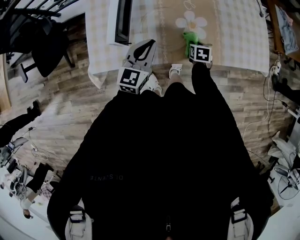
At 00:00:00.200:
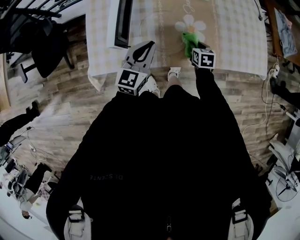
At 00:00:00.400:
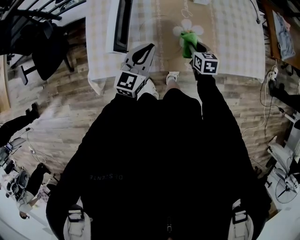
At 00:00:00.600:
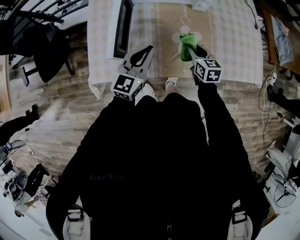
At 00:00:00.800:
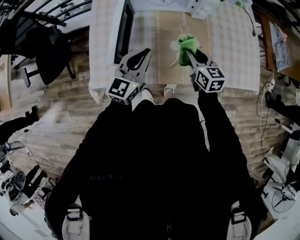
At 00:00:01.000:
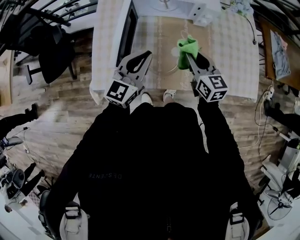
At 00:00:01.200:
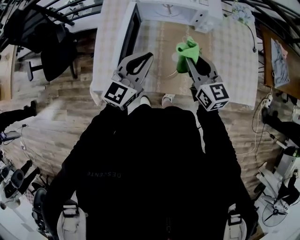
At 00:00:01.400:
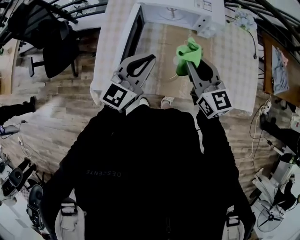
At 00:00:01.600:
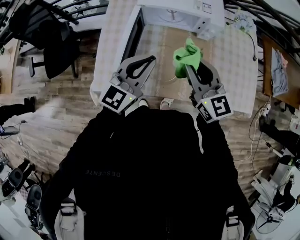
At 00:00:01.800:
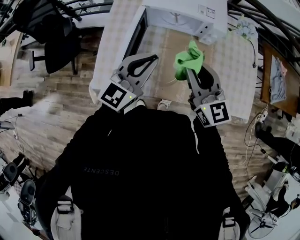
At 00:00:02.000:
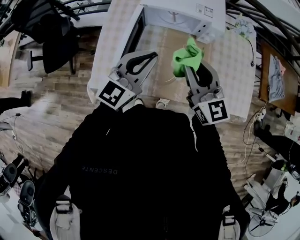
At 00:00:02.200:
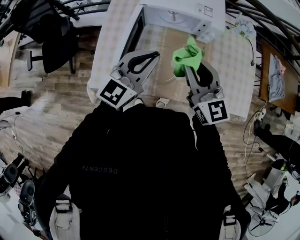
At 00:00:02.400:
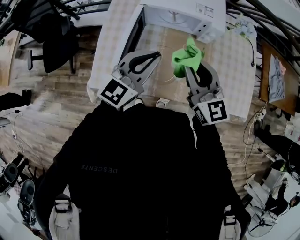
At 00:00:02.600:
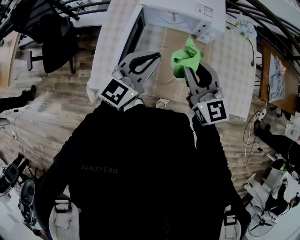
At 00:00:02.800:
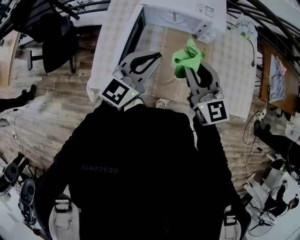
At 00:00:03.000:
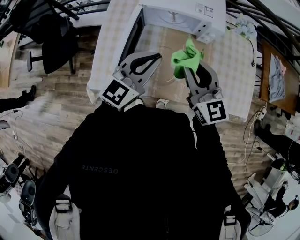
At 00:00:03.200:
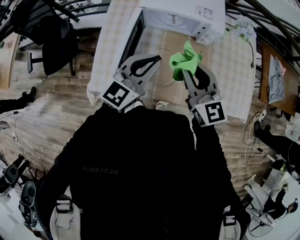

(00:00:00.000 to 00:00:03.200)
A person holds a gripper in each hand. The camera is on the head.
00:00:00.000 - 00:00:01.600: The right gripper shifts approximately 40 cm upward, and tilts its fingers approximately 50 degrees upward; the left gripper travels upward by approximately 20 cm.
00:00:01.600 - 00:00:03.200: The grippers make only small movements.

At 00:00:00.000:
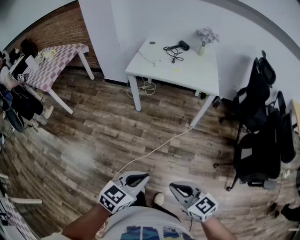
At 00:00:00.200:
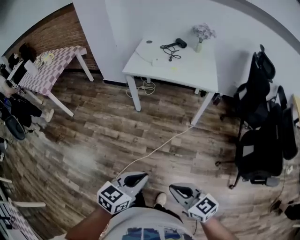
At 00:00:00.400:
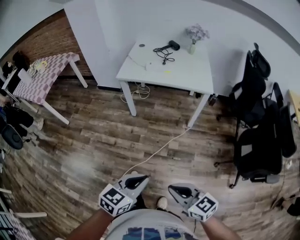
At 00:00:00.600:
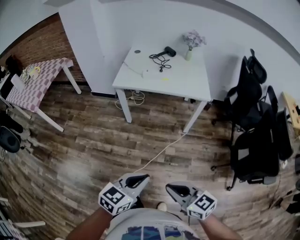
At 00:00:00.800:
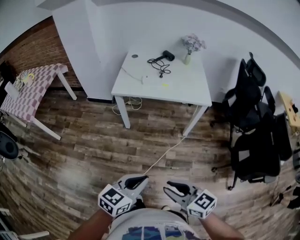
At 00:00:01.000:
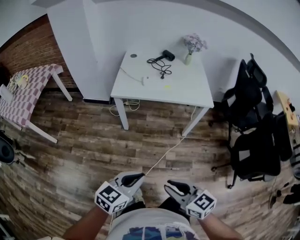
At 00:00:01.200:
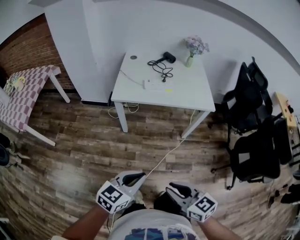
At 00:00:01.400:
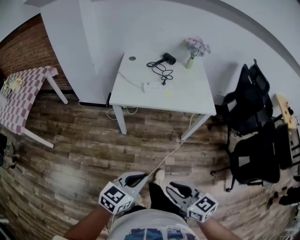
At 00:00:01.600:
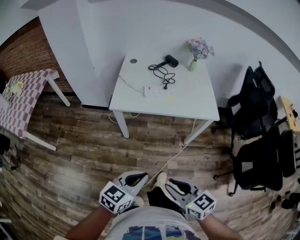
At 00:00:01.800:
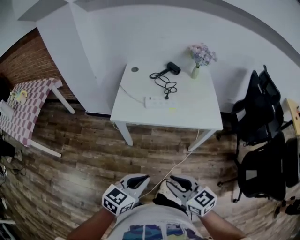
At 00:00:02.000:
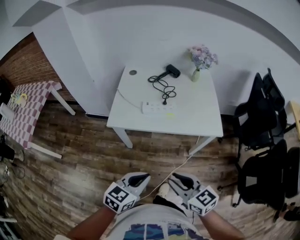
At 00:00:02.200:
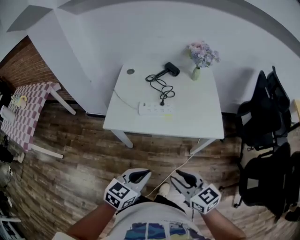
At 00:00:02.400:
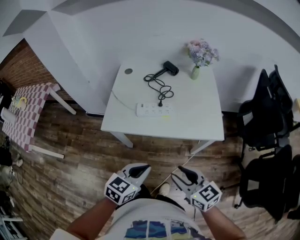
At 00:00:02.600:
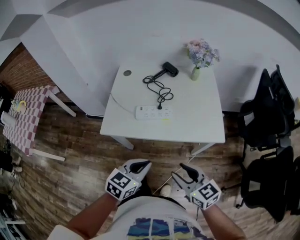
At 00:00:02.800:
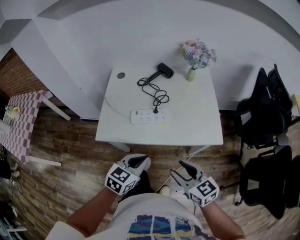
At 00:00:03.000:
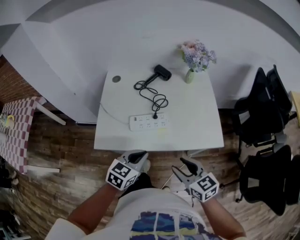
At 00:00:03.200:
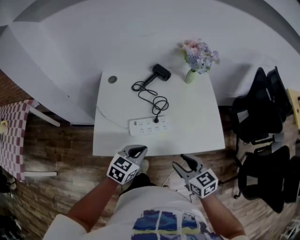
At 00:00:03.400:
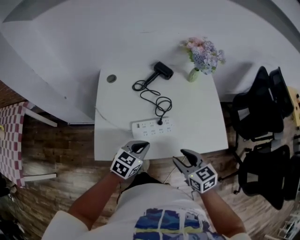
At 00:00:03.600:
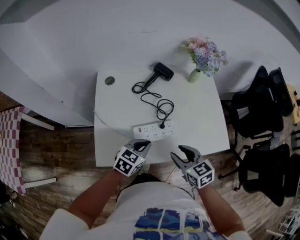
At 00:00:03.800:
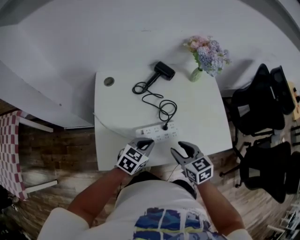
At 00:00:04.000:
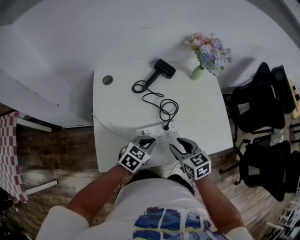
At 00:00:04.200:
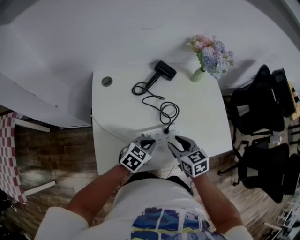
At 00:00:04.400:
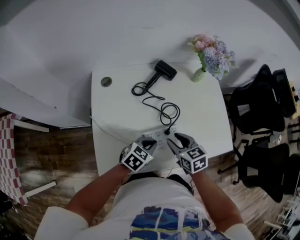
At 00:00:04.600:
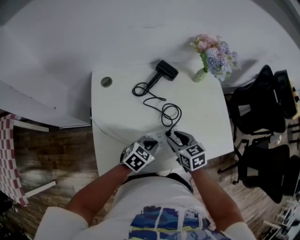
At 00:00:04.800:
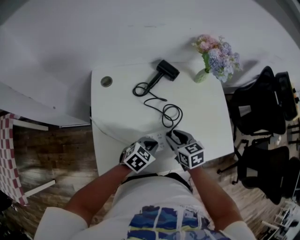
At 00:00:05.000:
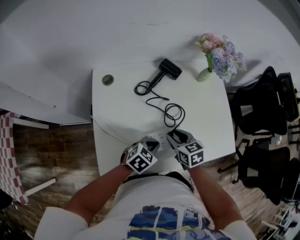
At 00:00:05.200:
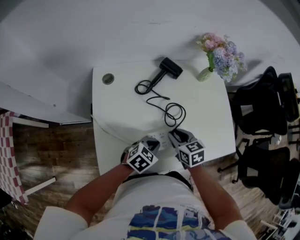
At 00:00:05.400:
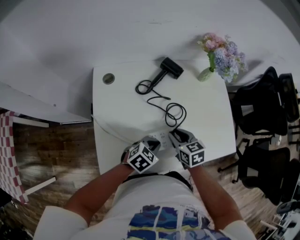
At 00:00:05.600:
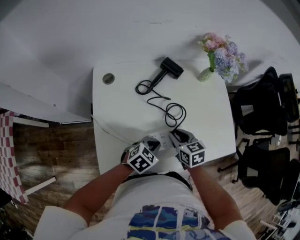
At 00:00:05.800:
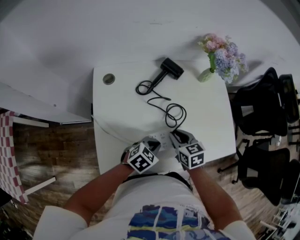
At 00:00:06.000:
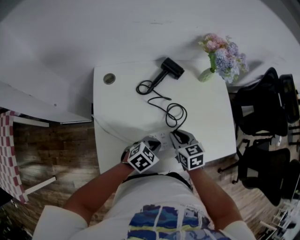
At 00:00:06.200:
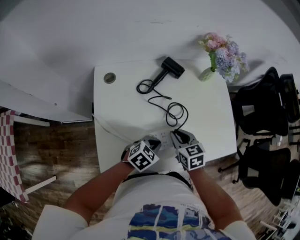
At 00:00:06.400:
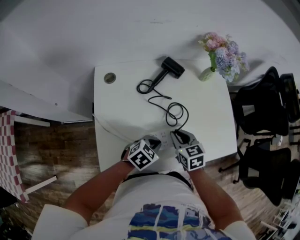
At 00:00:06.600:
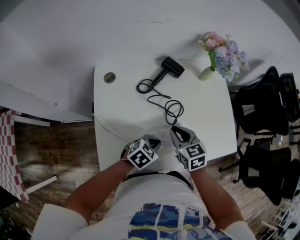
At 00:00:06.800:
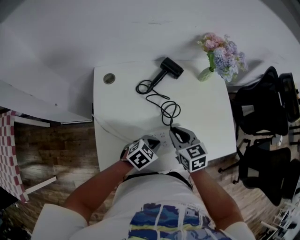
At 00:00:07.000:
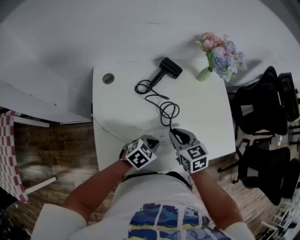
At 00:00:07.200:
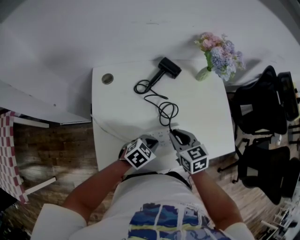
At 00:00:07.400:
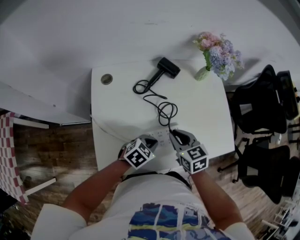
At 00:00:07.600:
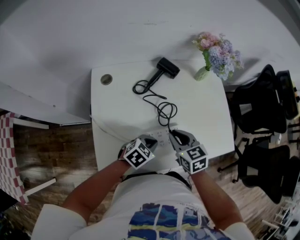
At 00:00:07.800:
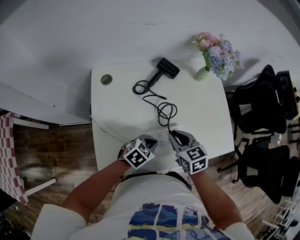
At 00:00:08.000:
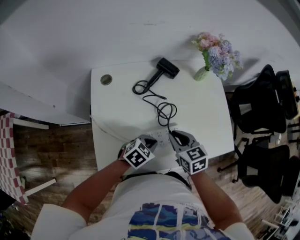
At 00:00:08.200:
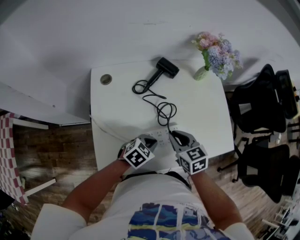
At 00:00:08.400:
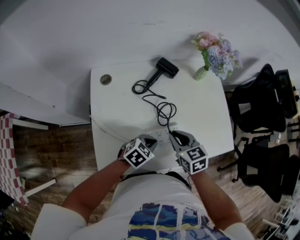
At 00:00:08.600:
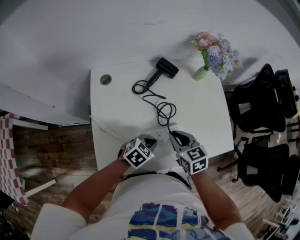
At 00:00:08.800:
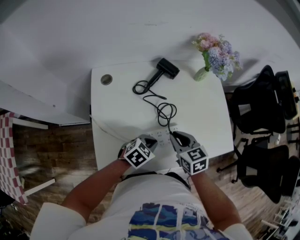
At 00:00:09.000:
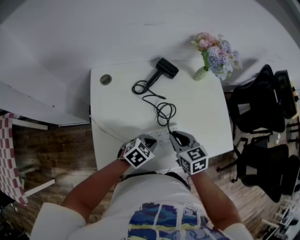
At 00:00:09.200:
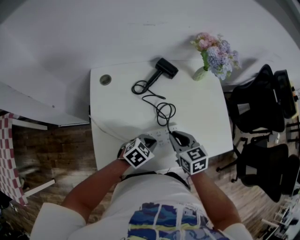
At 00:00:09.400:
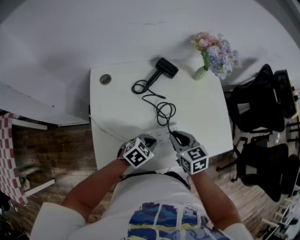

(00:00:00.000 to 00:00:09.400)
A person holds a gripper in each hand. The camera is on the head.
00:00:00.000 - 00:00:01.600: The grippers both shift forward by roughly 35 cm.
00:00:01.600 - 00:00:03.200: The pair of grippers is taken forward, approximately 40 cm. The right gripper opens its fingers.
00:00:03.200 - 00:00:04.800: The left gripper shifts some 15 cm forward and downward, and swivels some 20 degrees. Meanwhile the right gripper shifts some 25 cm forward, to the left and downward.
00:00:04.800 - 00:00:06.200: The right gripper closes up.
00:00:06.200 - 00:00:07.800: There are only small adjustments of the grippers.
00:00:07.800 - 00:00:09.400: Both grippers stay about where they are.

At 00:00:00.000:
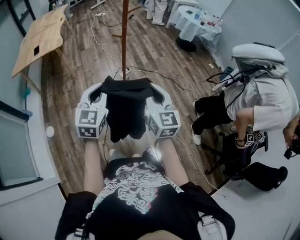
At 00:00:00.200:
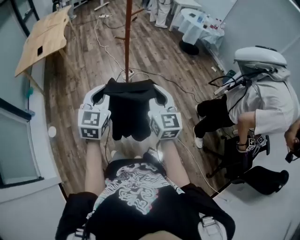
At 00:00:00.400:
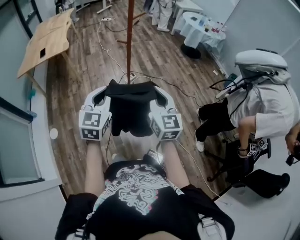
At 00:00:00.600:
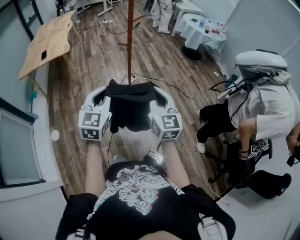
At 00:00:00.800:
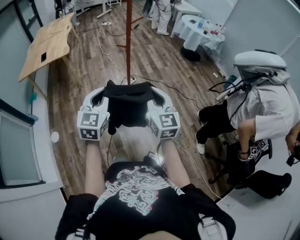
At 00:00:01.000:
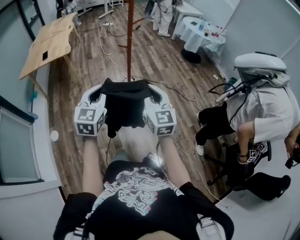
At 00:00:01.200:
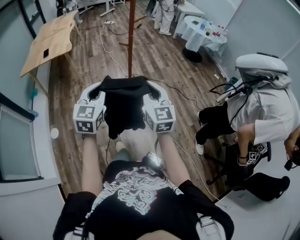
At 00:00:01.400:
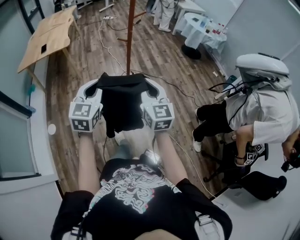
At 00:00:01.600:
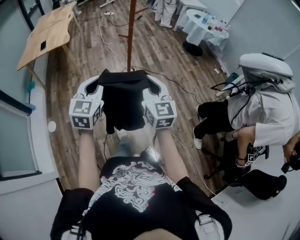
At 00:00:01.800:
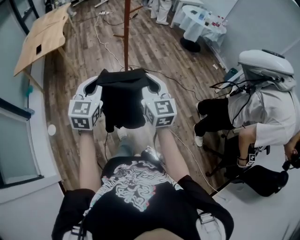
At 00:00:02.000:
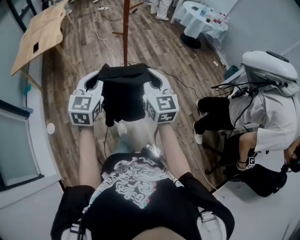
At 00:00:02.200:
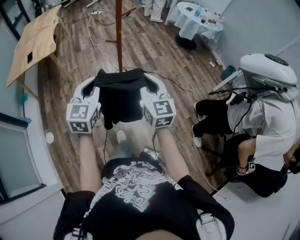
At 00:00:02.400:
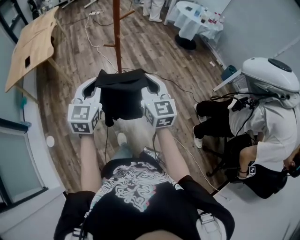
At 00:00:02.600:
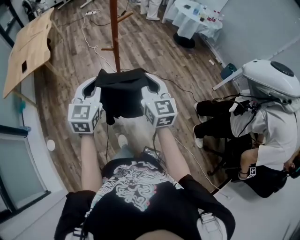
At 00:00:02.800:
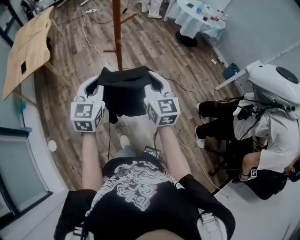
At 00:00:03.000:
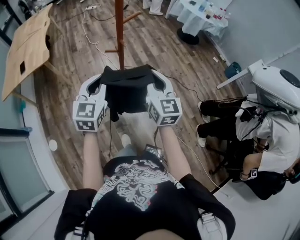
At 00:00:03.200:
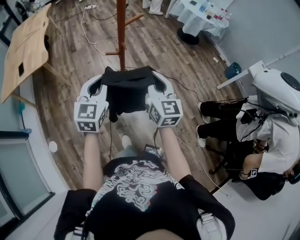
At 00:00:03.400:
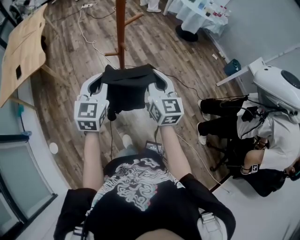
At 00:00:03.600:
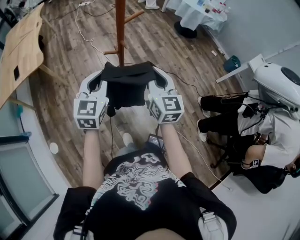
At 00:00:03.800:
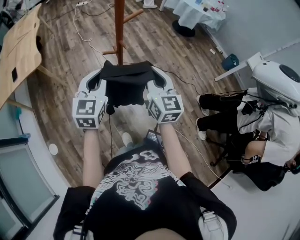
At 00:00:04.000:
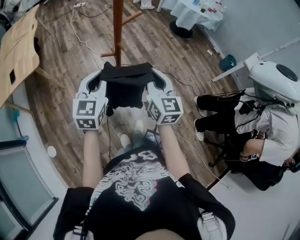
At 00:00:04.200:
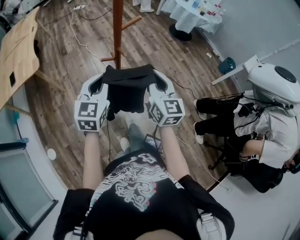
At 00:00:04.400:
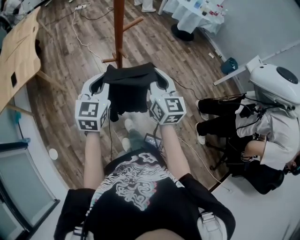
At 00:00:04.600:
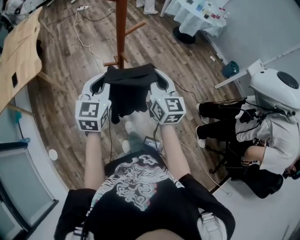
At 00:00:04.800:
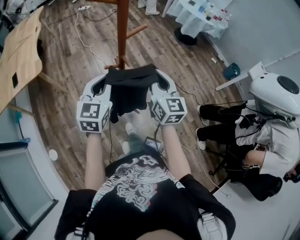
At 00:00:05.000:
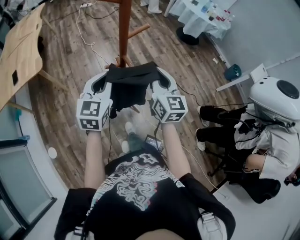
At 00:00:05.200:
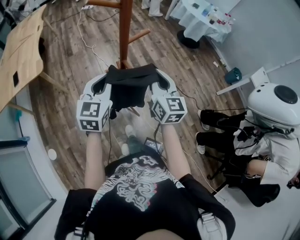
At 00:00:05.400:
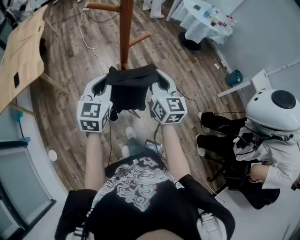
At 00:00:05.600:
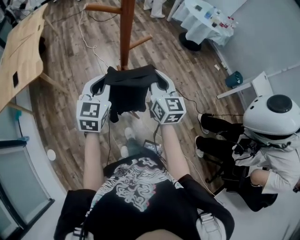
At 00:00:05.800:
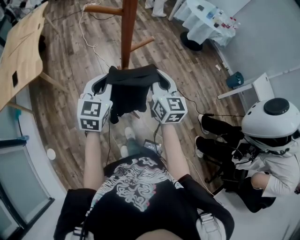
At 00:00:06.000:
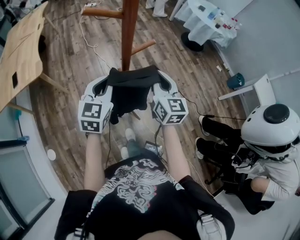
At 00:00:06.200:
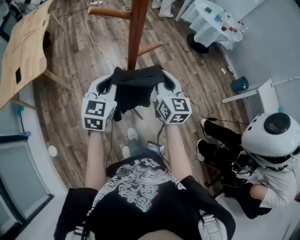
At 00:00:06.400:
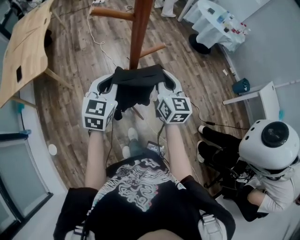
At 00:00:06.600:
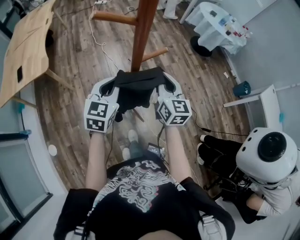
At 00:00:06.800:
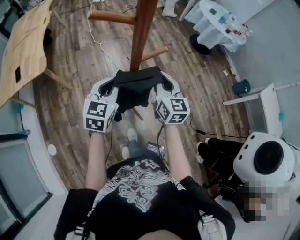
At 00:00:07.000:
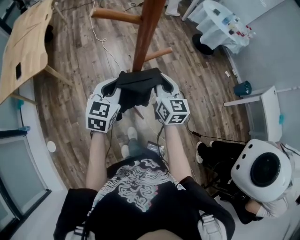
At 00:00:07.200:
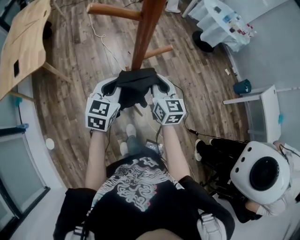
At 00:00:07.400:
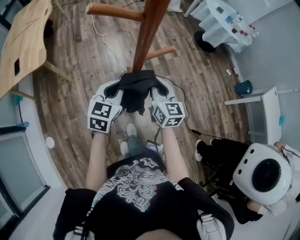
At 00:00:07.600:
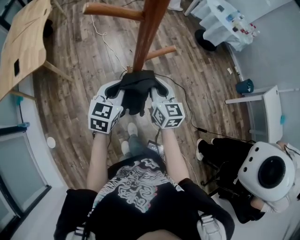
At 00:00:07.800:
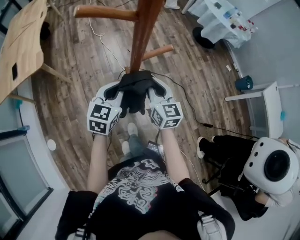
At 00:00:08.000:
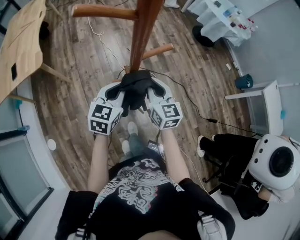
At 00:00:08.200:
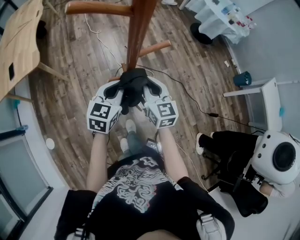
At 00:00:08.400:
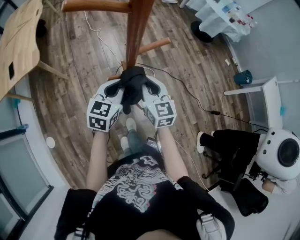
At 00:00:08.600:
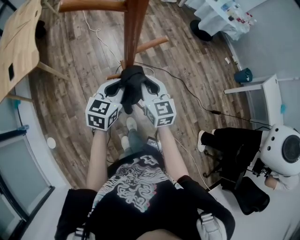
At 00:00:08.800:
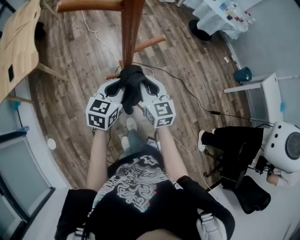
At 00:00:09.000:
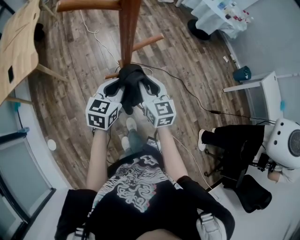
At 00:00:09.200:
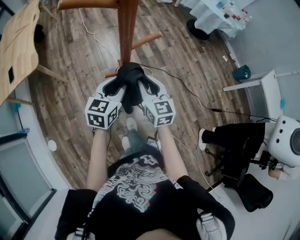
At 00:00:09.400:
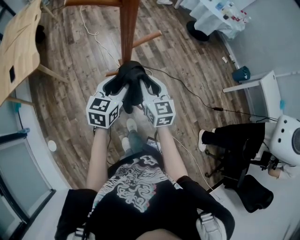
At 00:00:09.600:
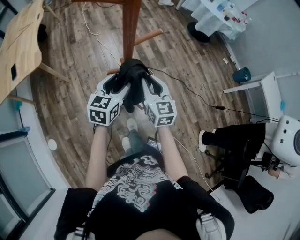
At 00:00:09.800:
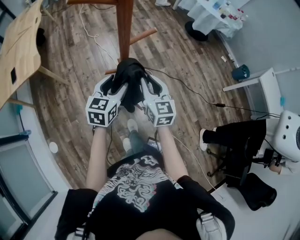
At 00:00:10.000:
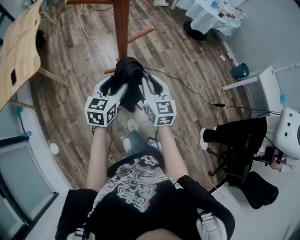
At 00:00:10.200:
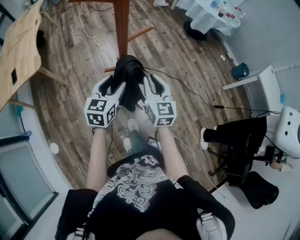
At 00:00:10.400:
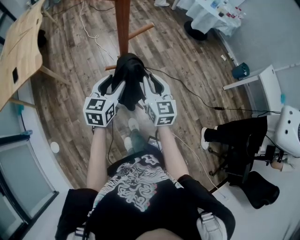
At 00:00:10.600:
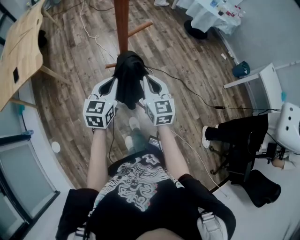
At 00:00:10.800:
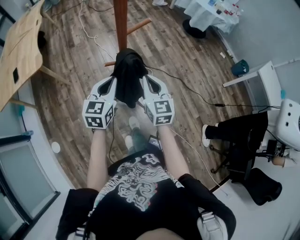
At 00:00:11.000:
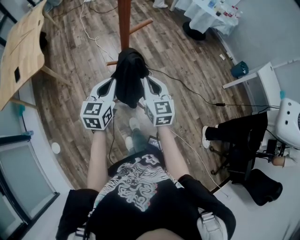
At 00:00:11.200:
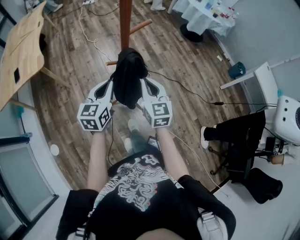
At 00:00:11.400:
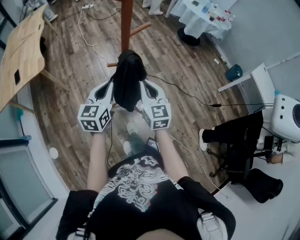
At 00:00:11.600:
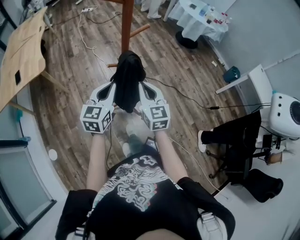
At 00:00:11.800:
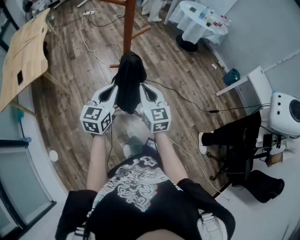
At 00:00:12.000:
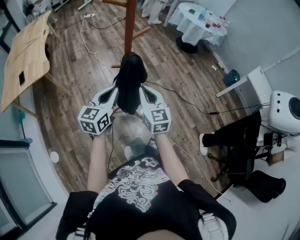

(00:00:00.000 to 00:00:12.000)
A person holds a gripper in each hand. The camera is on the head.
00:00:00.000 - 00:00:01.600: The grippers make only small movements.
00:00:01.600 - 00:00:03.000: Both grippers travel together forward, about 30 cm.
00:00:03.000 - 00:00:04.400: The two grippers go some 10 cm forward.
00:00:04.400 - 00:00:06.000: Both grippers move forward, approximately 15 cm.
00:00:06.000 - 00:00:07.600: The grippers both shift downward by some 10 cm.
00:00:07.600 - 00:00:09.000: The grippers move only a little.
00:00:09.000 - 00:00:10.400: The two grippers go approximately 5 cm backward. The left gripper opens up.
00:00:10.400 - 00:00:12.000: The right gripper heads backward, covering approximately 15 cm. The left gripper moves backward and upward, roughly 15 cm, and closes its fingers.
